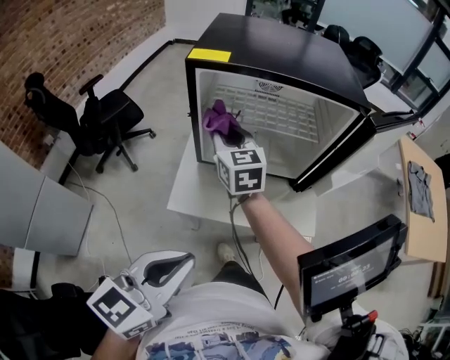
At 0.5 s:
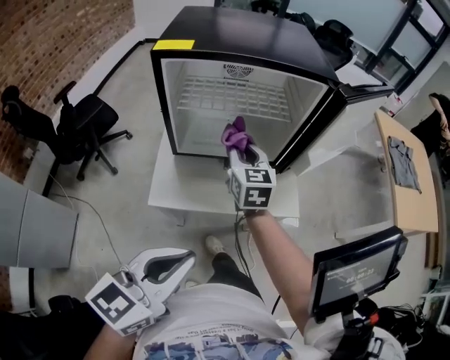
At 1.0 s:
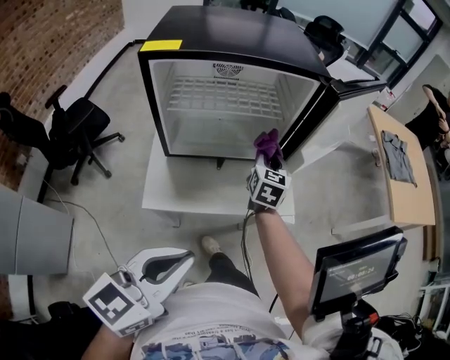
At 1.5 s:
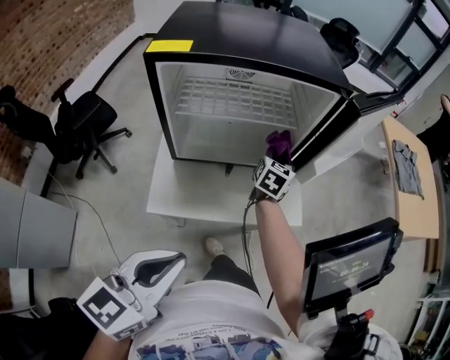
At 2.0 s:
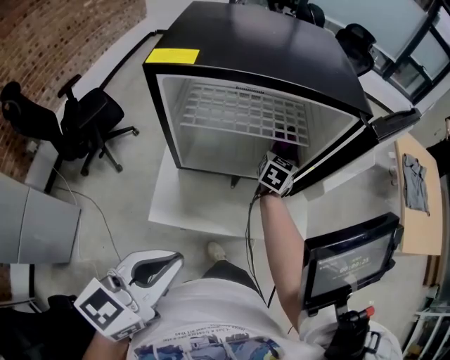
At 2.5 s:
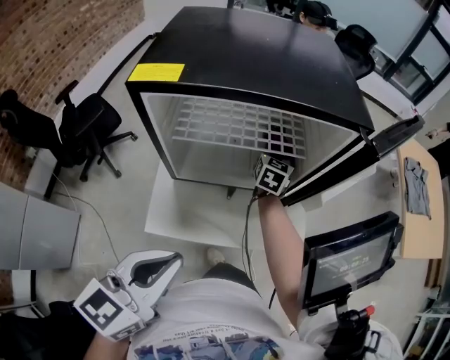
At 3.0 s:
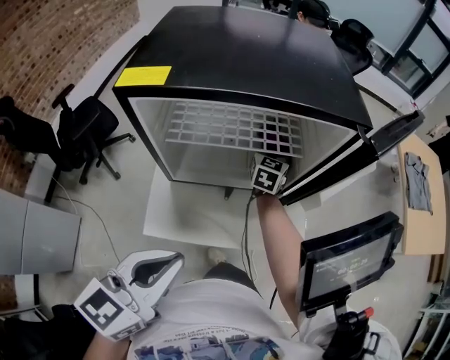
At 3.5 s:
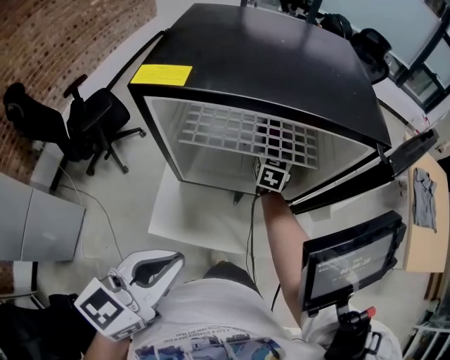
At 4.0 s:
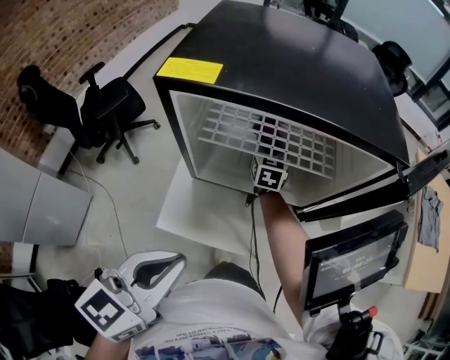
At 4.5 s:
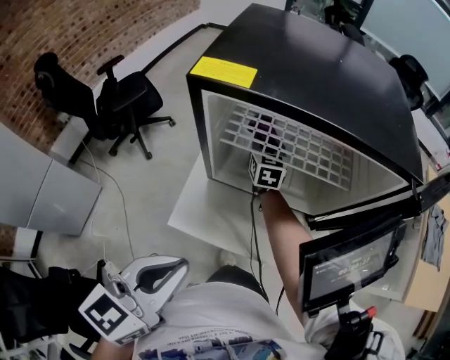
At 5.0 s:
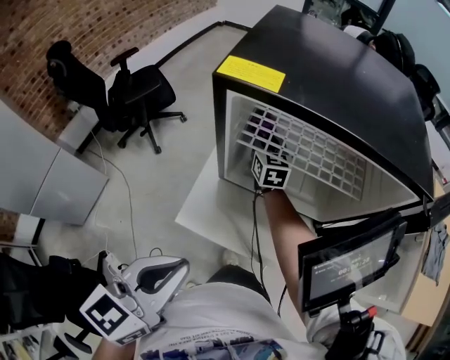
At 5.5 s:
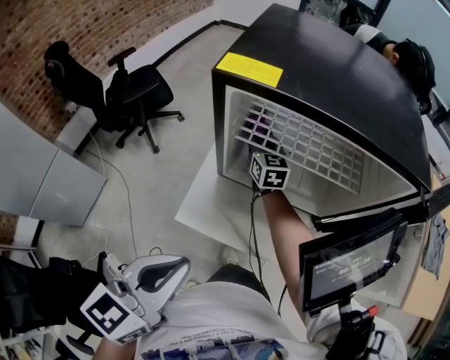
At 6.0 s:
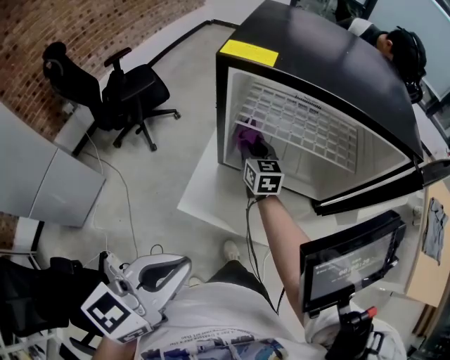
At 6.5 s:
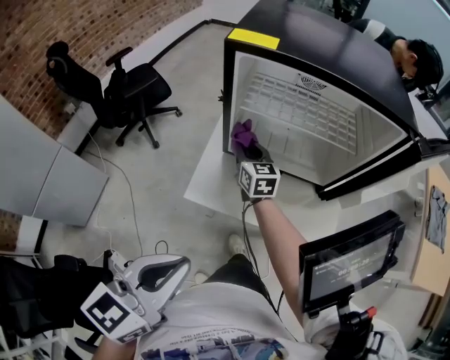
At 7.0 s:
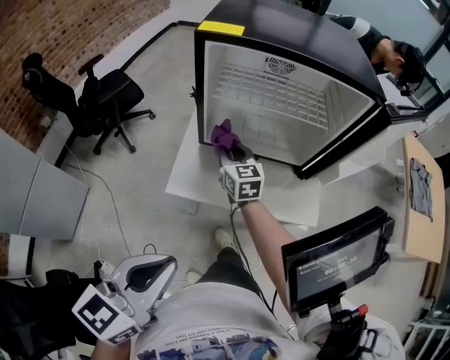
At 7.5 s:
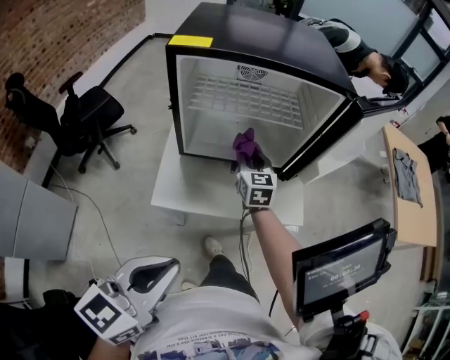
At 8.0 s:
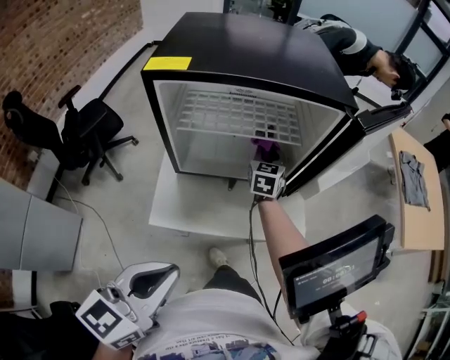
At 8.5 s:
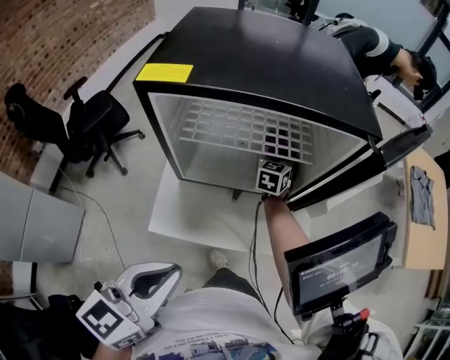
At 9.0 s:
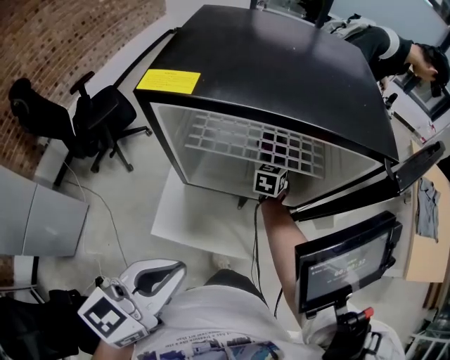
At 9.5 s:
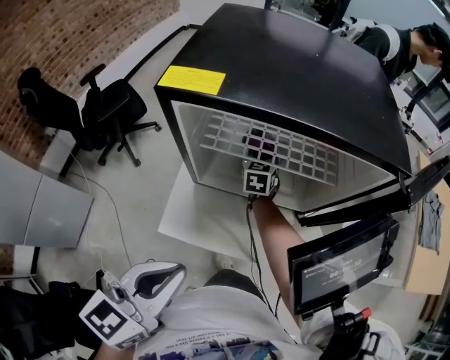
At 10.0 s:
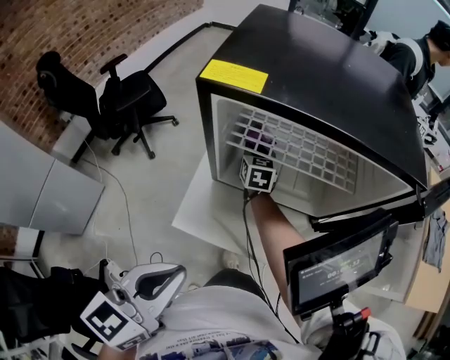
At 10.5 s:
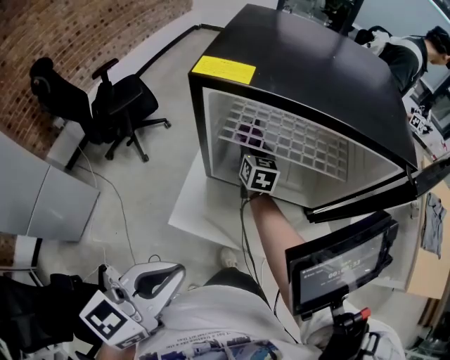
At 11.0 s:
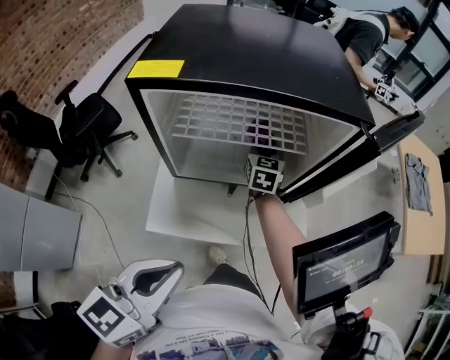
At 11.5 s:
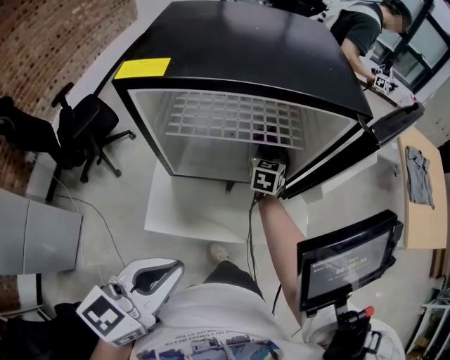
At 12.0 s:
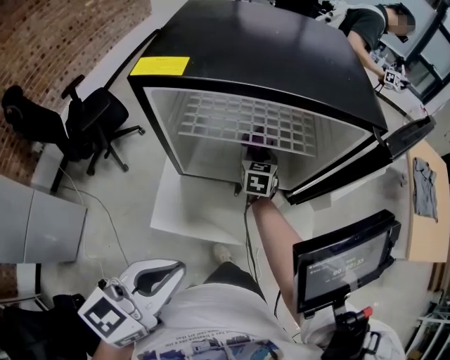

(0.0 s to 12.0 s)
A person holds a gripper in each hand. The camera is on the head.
0.0 s - 2.0 s: The left gripper ends up about 5 cm from where it was. Meanwhile the right gripper ends up some 30 cm from where it was, and rotates some 50 degrees.
2.0 s - 4.0 s: The right gripper shifts some 15 cm to the left, and swivels some 30 degrees.
4.0 s - 6.0 s: The right gripper travels to the left and backward by approximately 15 cm, and turns by approximately 20 degrees. The left gripper goes roughly 5 cm backward.
6.0 s - 8.0 s: The right gripper ends up about 20 cm from where it was, and turns by some 40 degrees.
8.0 s - 10.0 s: The right gripper heads to the left, covering about 20 cm, and turns by some 20 degrees. The left gripper moves some 5 cm.
10.0 s - 12.0 s: The right gripper heads to the right, covering some 15 cm.

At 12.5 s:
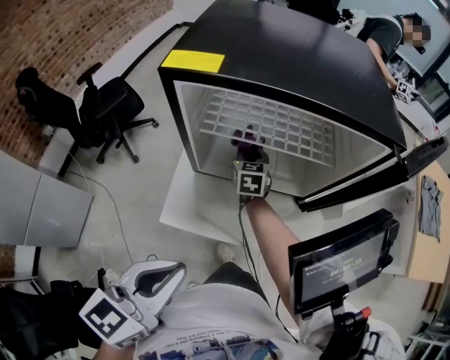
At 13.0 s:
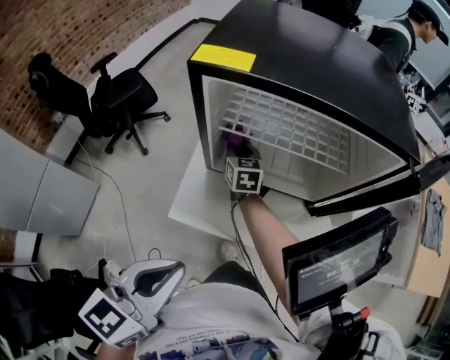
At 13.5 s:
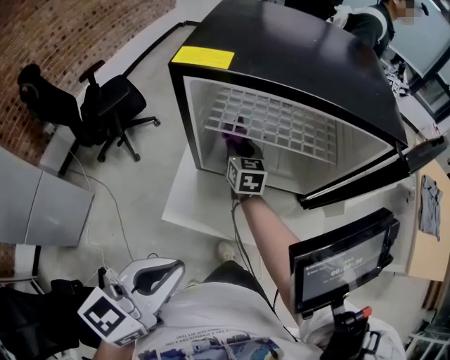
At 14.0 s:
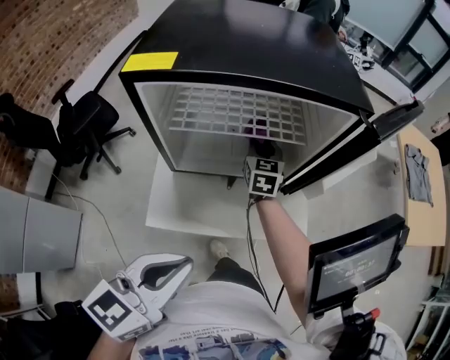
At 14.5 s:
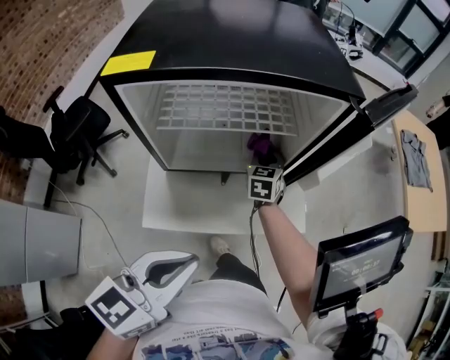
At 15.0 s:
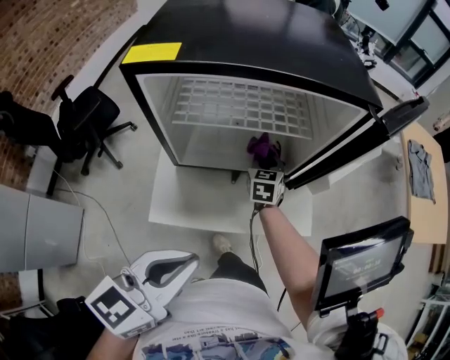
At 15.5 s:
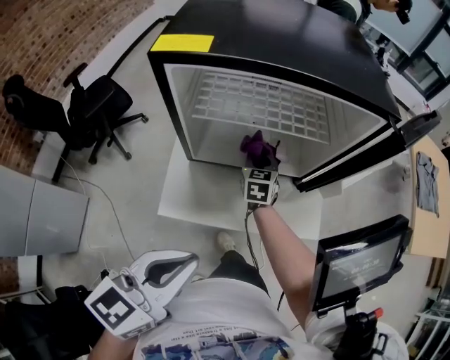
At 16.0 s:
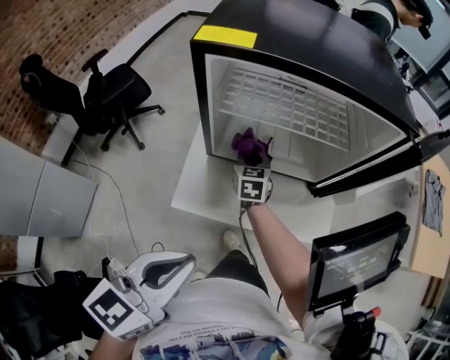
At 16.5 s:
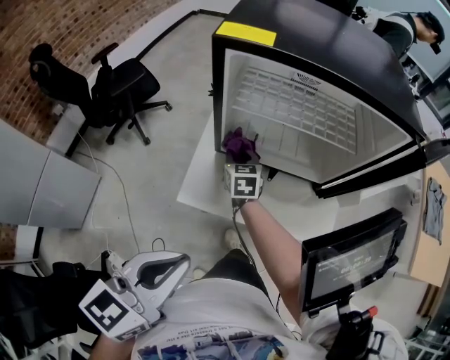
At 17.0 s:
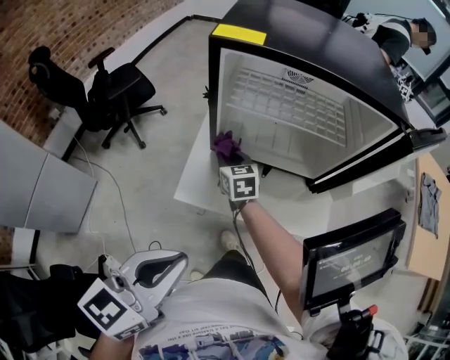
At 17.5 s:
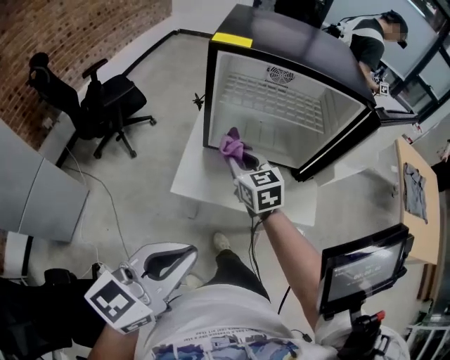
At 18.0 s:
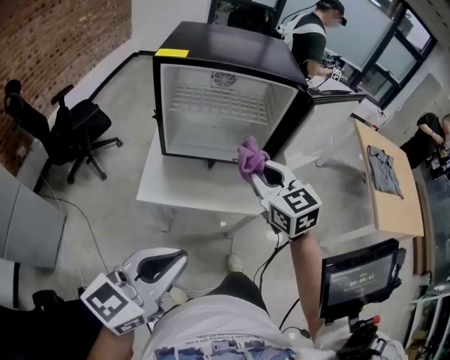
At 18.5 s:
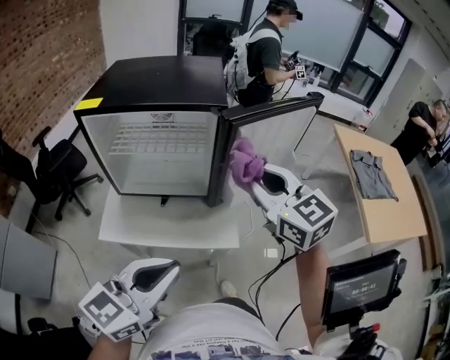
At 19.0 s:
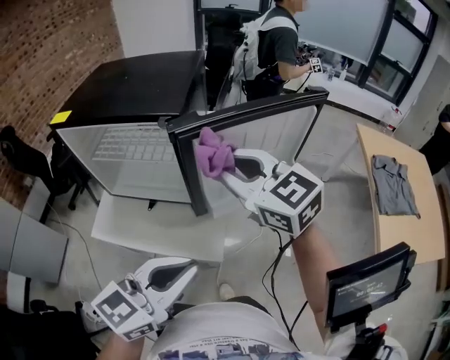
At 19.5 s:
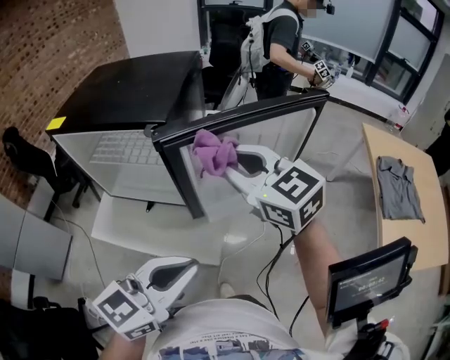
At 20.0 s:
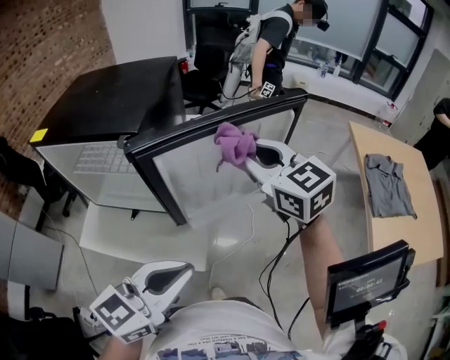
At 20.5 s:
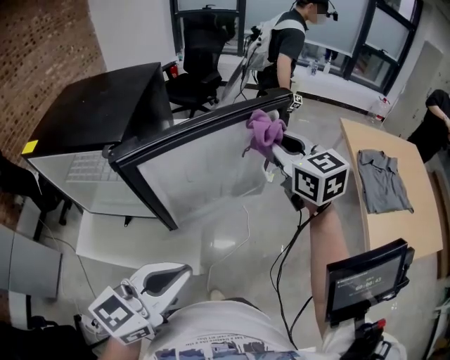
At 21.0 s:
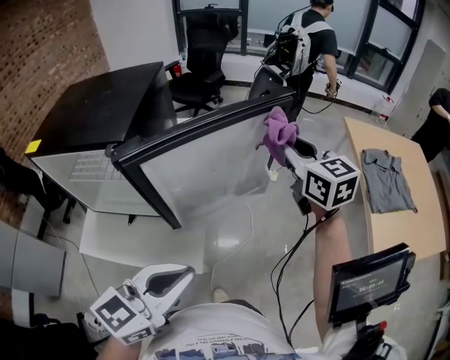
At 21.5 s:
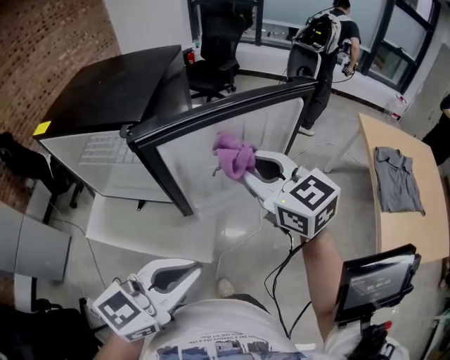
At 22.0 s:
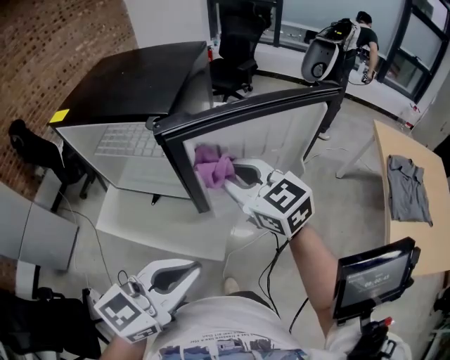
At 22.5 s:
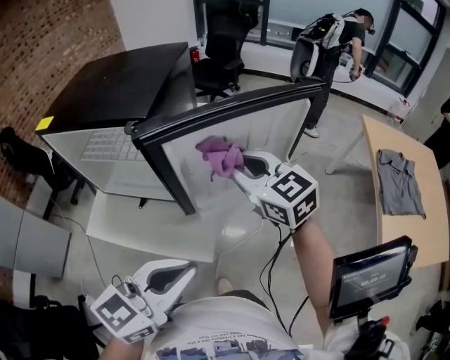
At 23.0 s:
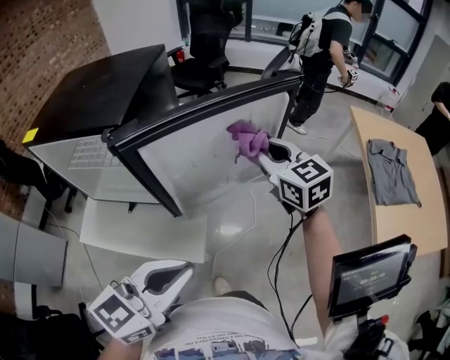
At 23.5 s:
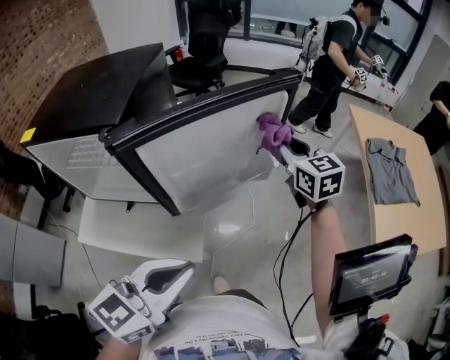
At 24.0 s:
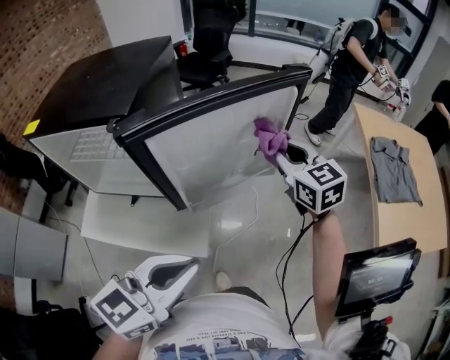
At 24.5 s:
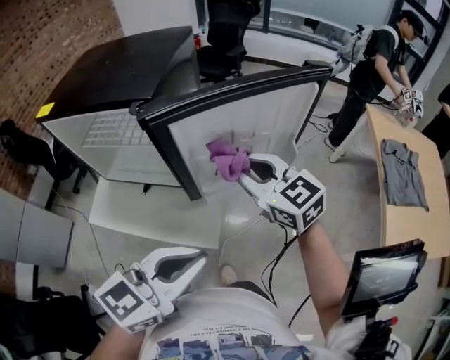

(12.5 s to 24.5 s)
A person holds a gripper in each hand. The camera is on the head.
12.5 s - 14.5 s: The left gripper moves about 5 cm, while the right gripper moves roughly 20 cm, and turns by some 20 degrees.
14.5 s - 16.5 s: The right gripper changes place by approximately 25 cm, and changes its angle by some 30 degrees, while the left gripper changes place by roughly 10 cm.
16.5 s - 18.5 s: The right gripper goes about 50 cm to the right and upward, and rotates approximately 30 degrees, while the left gripper moves to the right, approximately 20 cm, and turns by approximately 20 degrees.
18.5 s - 20.5 s: Both grippers travel together to the right and forward, roughly 25 cm.
20.5 s - 22.5 s: The right gripper goes roughly 15 cm to the left and backward, and turns by roughly 20 degrees.
22.5 s - 24.5 s: The right gripper moves about 20 cm to the right and comes back.

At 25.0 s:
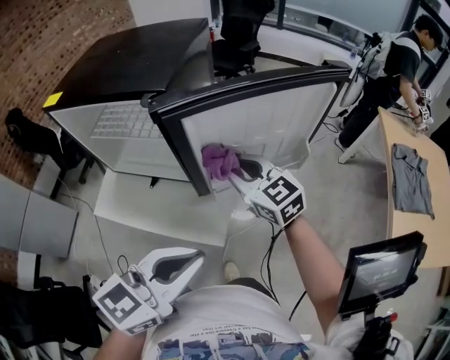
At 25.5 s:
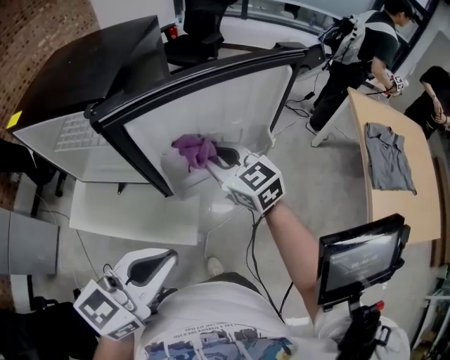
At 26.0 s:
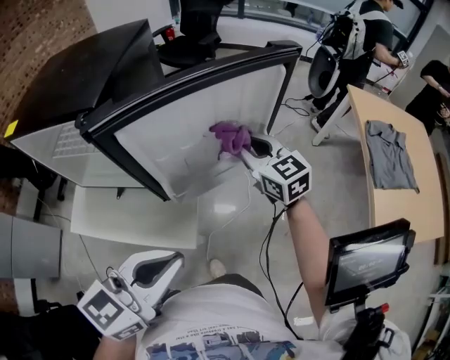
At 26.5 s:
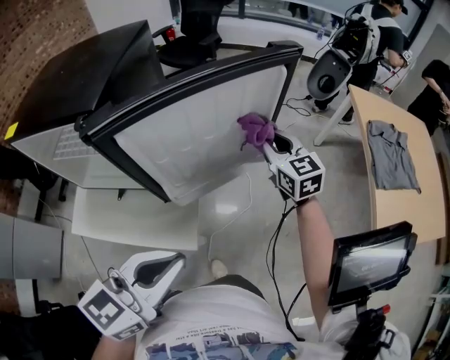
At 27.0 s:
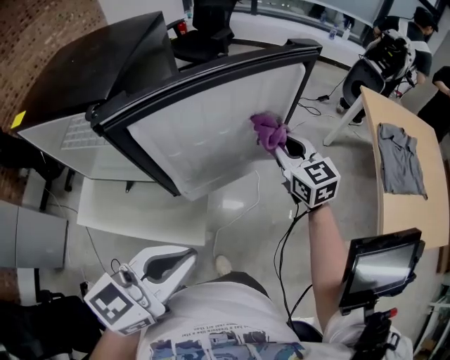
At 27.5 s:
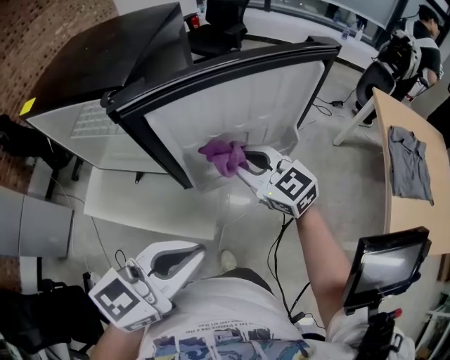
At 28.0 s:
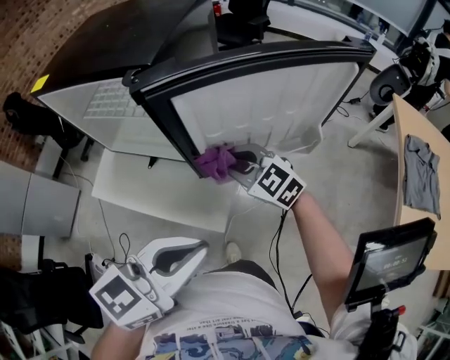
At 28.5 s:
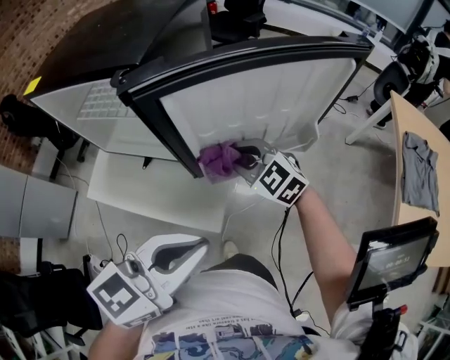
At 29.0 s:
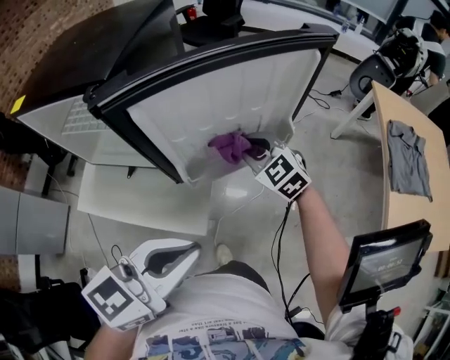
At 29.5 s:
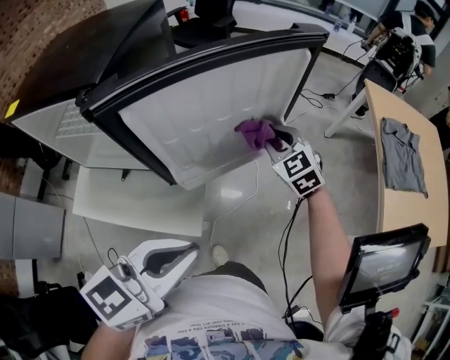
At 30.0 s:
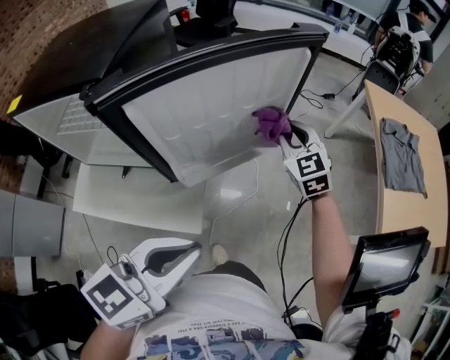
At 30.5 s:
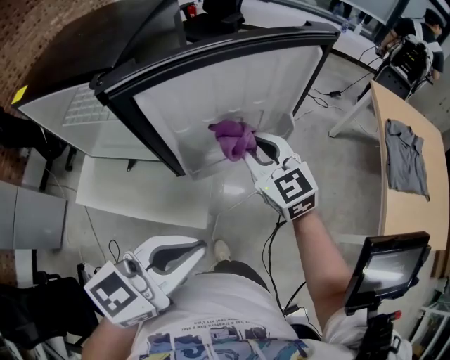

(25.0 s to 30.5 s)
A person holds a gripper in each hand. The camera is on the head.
25.0 s - 27.0 s: The right gripper travels to the right and forward by about 20 cm, and rotates approximately 20 degrees.
27.0 s - 28.5 s: The right gripper travels to the left by about 20 cm, and turns by roughly 40 degrees.
28.5 s - 30.5 s: The right gripper heads to the right and upward, covering about 10 cm, and swivels roughly 30 degrees.
